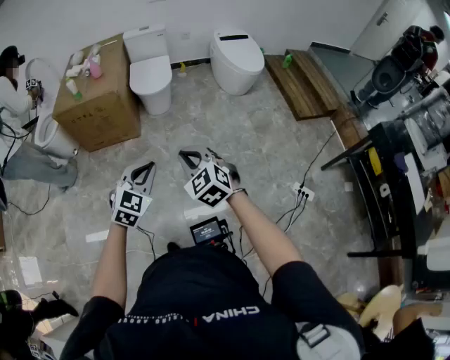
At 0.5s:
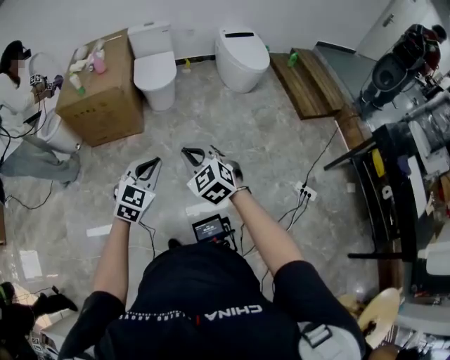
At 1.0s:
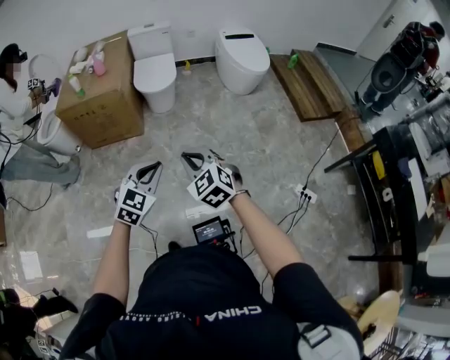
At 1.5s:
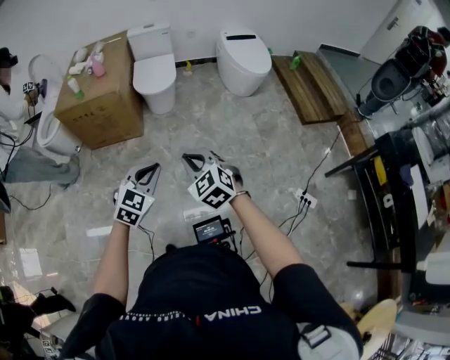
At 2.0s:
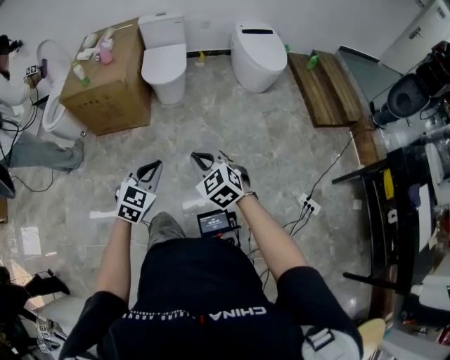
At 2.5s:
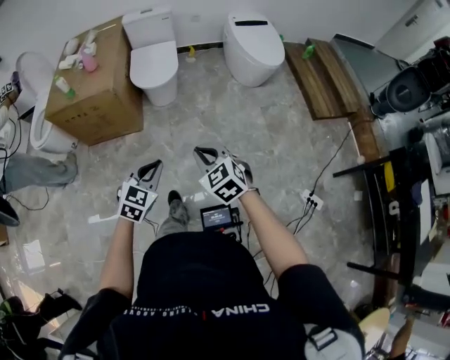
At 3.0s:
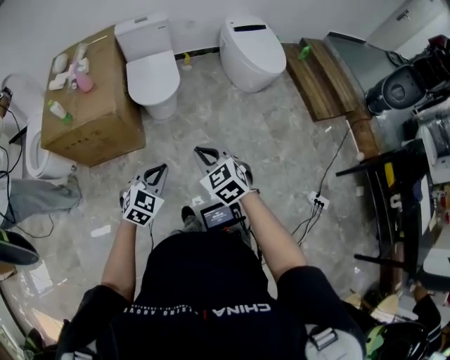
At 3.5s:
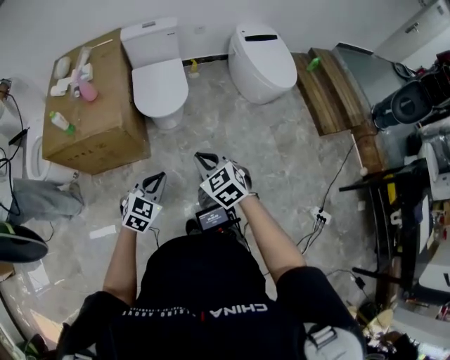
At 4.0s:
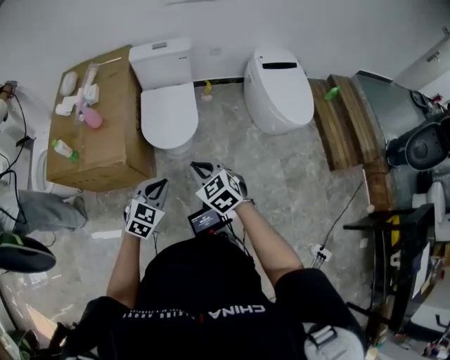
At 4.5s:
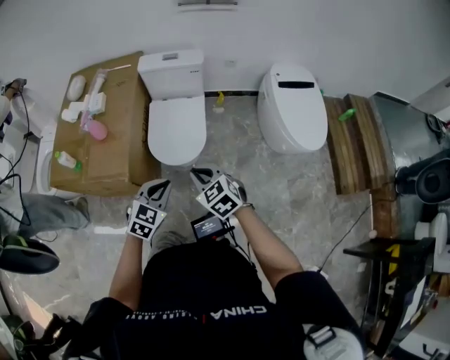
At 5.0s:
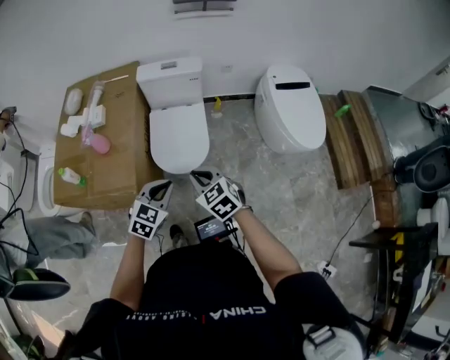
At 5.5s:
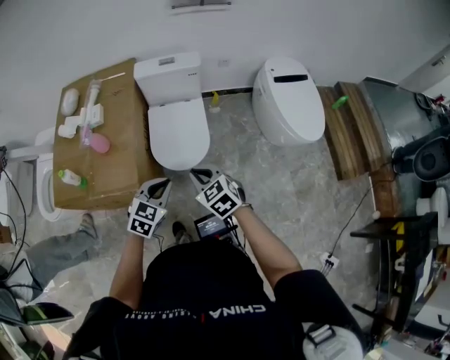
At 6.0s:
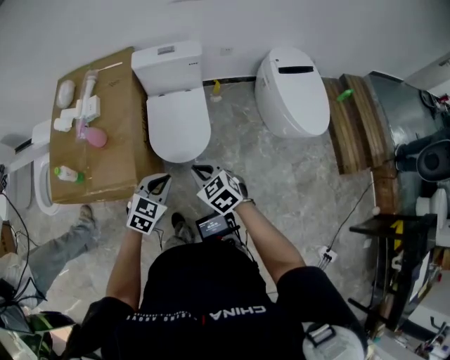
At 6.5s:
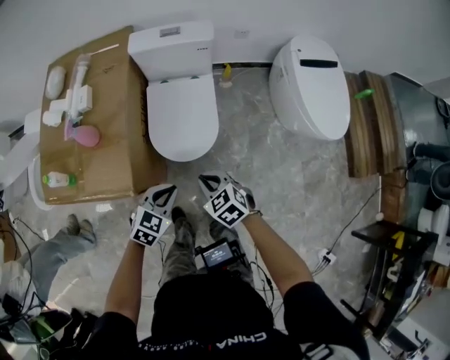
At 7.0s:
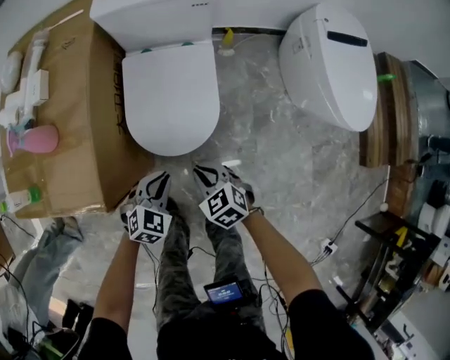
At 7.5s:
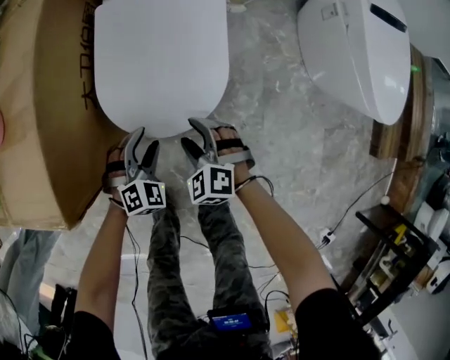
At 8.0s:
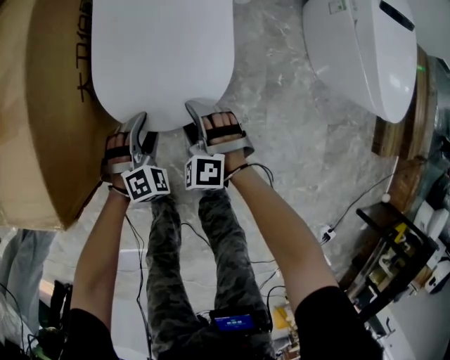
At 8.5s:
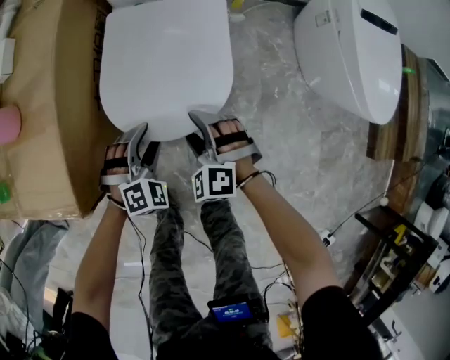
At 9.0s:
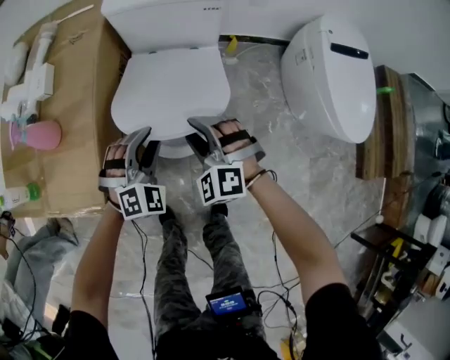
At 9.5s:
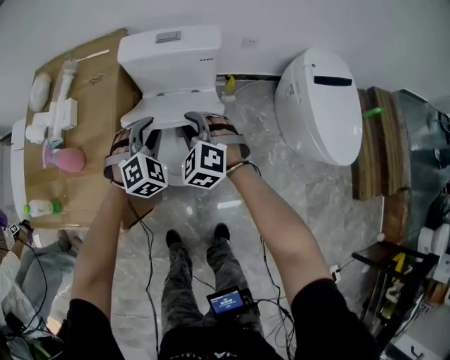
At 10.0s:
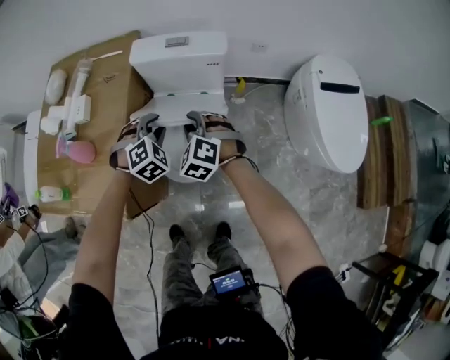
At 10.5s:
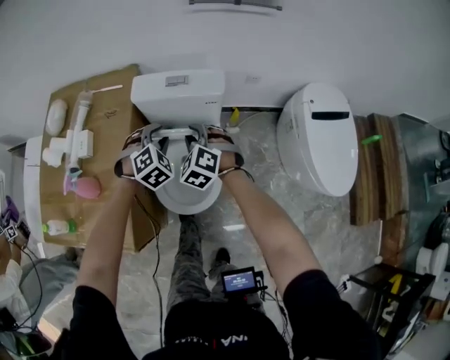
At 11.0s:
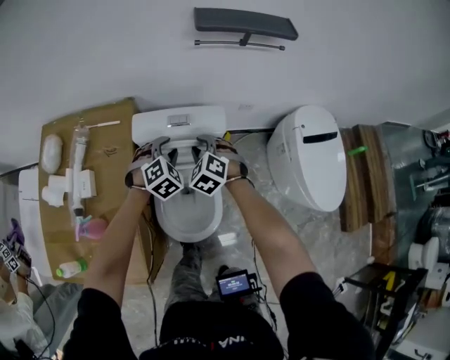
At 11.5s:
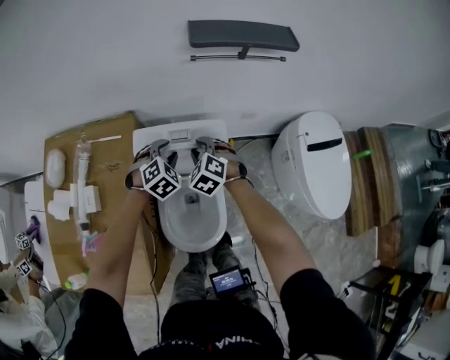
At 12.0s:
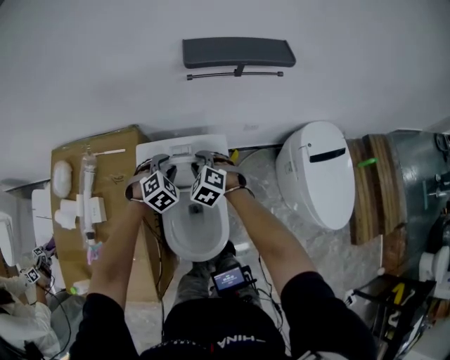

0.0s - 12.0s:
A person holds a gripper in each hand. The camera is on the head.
0.0s - 2.0s: The right gripper goes about 10 cm forward, to the right and downward; the left gripper moves forward and to the right, about 10 cm.
2.0s - 4.0s: The two grippers travel together, forward, about 60 cm.
4.0s - 6.0s: Both grippers travel together forward, roughly 15 cm.
6.0s - 8.0s: The grippers both shift downward by about 50 cm. The right gripper rotates around the line of its fingers by some 40 degrees, counterclockwise from behind, and opens its fingers, while the left gripper rotates about 40 degrees, and opens up.
8.0s - 10.0s: Both grippers move upward and forward, roughly 40 cm. The left gripper closes its fingers, while the right gripper closes up.
10.0s - 12.0s: Both grippers move forward, about 25 cm.

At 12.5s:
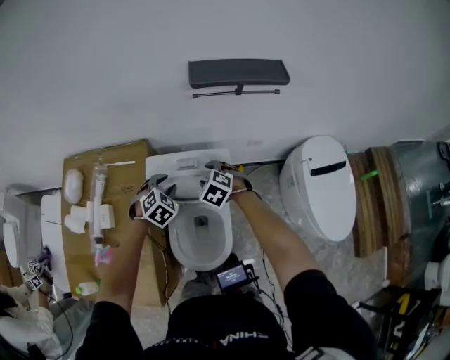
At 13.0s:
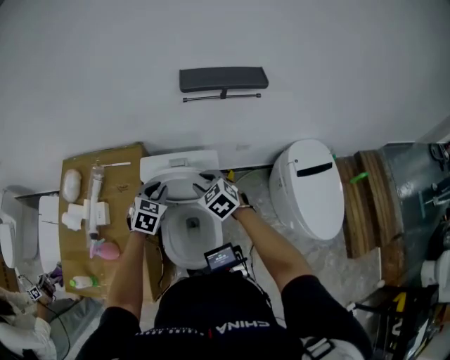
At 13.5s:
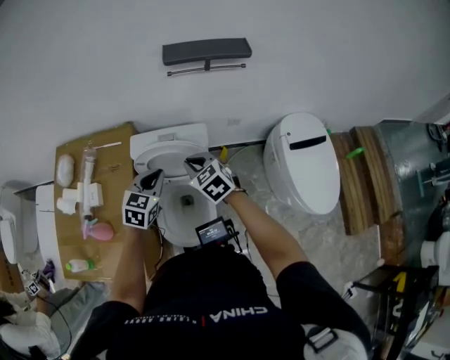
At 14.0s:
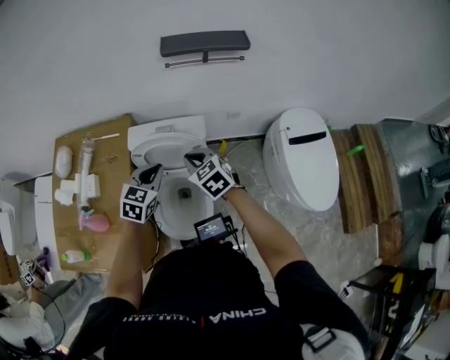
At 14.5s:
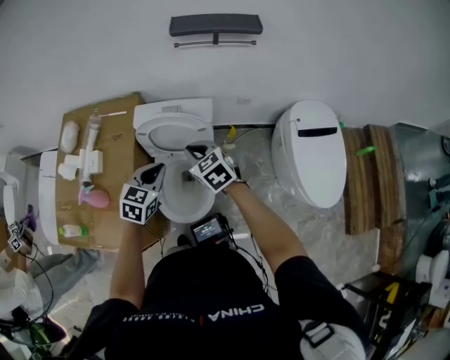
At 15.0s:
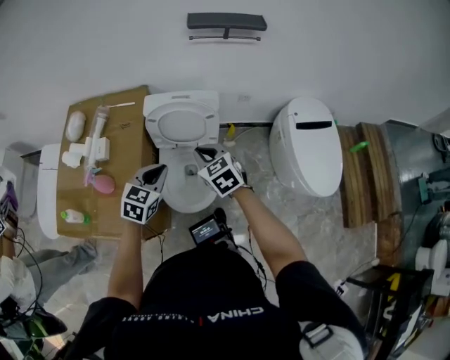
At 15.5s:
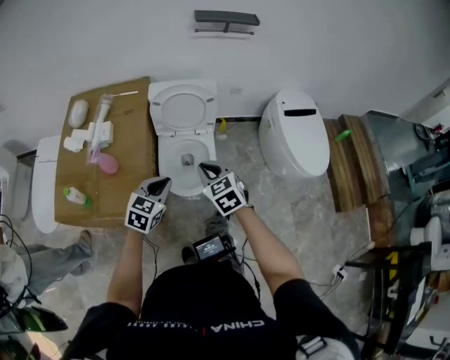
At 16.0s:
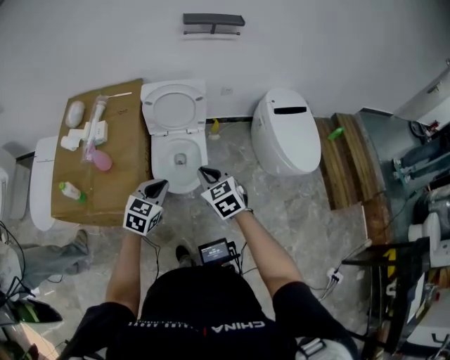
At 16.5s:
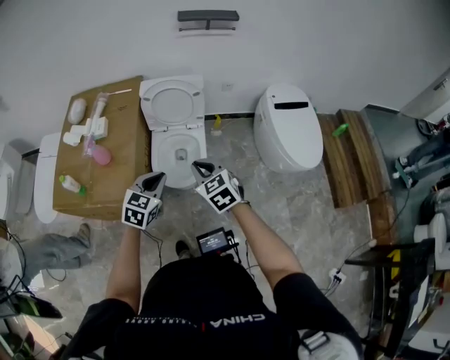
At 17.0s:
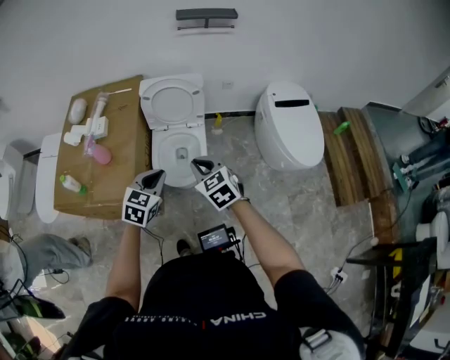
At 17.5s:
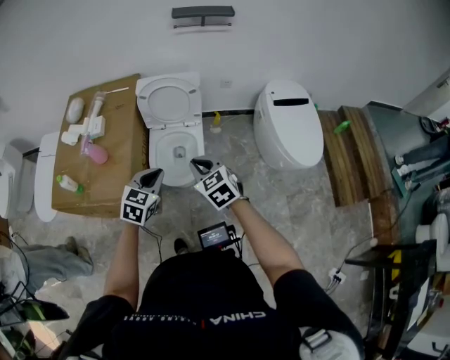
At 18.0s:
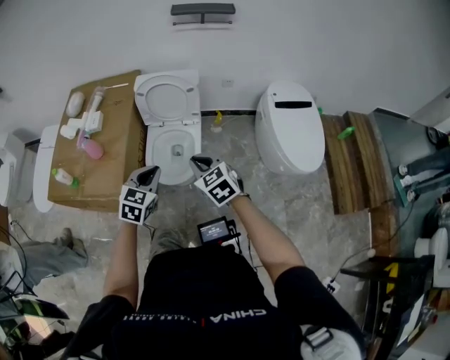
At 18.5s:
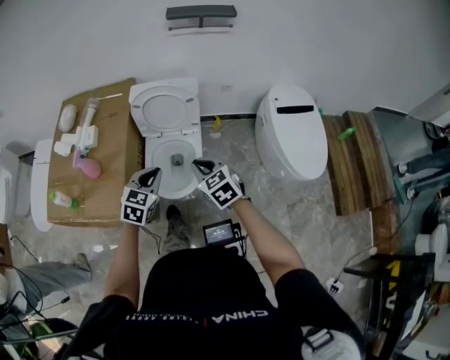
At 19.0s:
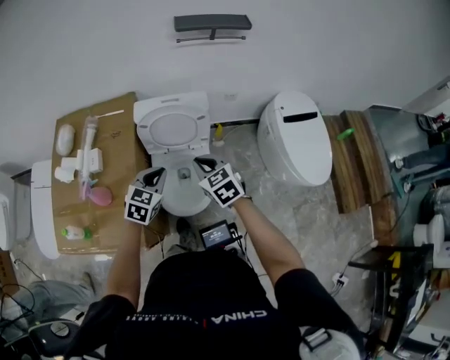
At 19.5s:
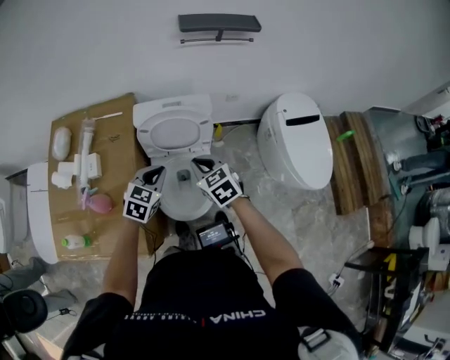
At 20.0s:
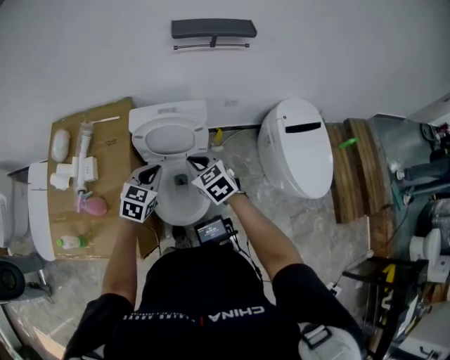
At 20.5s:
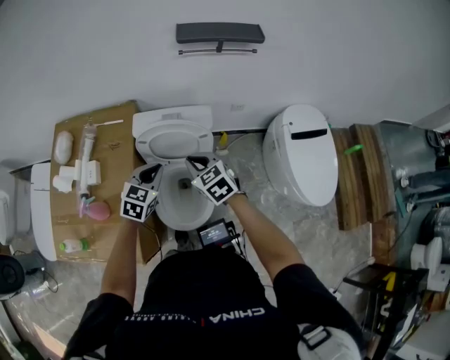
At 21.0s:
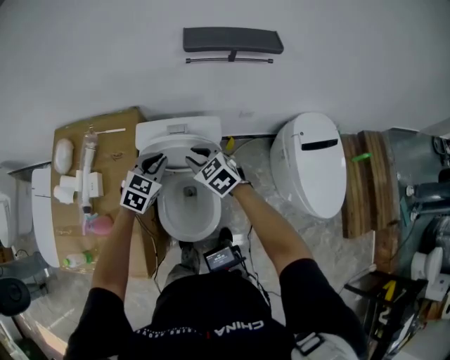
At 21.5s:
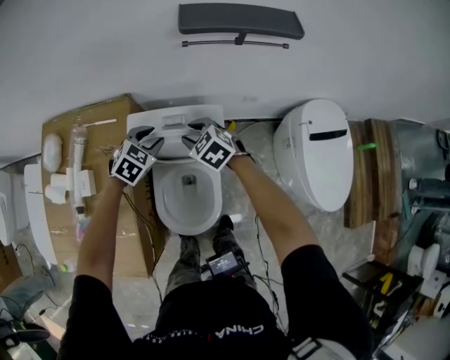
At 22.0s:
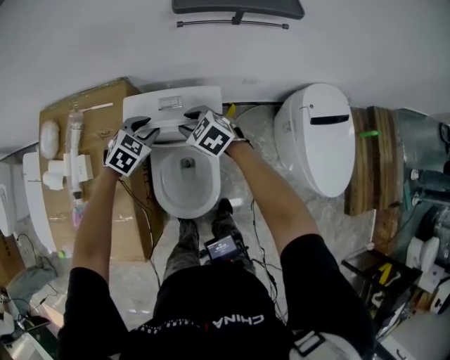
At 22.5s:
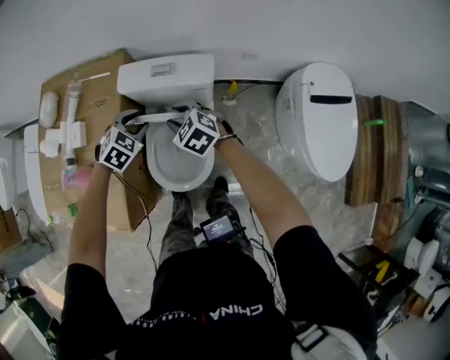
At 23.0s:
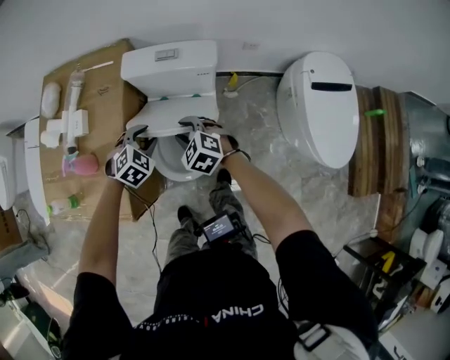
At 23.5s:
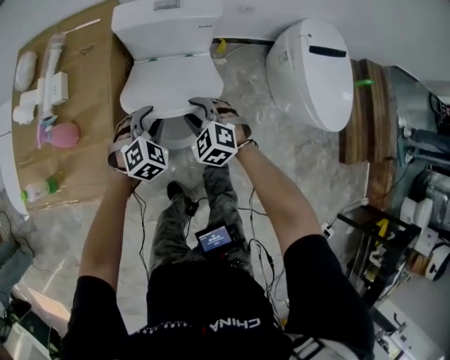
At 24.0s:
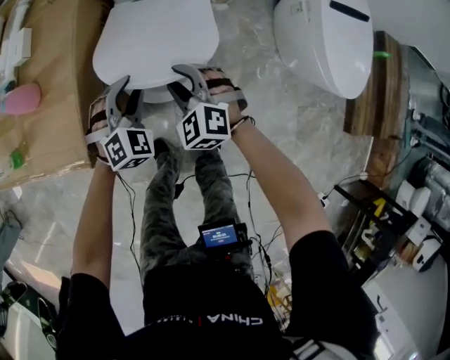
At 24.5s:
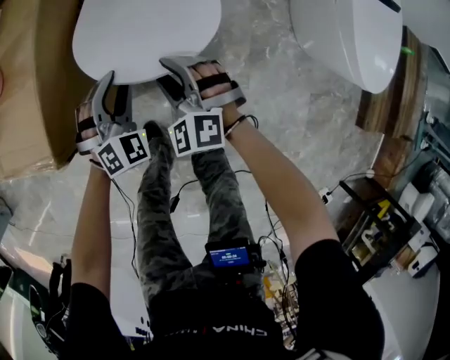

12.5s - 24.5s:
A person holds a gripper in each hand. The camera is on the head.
12.5s - 14.5s: Both grippers move backward and upward, roughly 20 cm. The left gripper rotates roughly 40 degrees, and closes up. Meanwhile the right gripper changes its angle by some 30 degrees, and closes.
14.5s - 16.5s: Both grippers travel together backward, roughly 35 cm.
16.5s - 18.5s: The right gripper shifts about 10 cm forward and to the right, while the left gripper moves forward, approximately 10 cm.
18.5s - 20.5s: The grippers both shift forward by roughly 25 cm.
20.5s - 22.5s: The right gripper is displaced downward by some 10 cm, reaches roughly 20 cm forward, then returns, swivels roughly 20 degrees, and opens, while the left gripper is displaced downward and forward by about 10 cm, swivels about 30 degrees, and opens.
22.5s - 24.5s: The two grippers go about 35 cm backward and downward. The left gripper changes its angle by some 30 degrees; the right gripper turns by some 30 degrees.

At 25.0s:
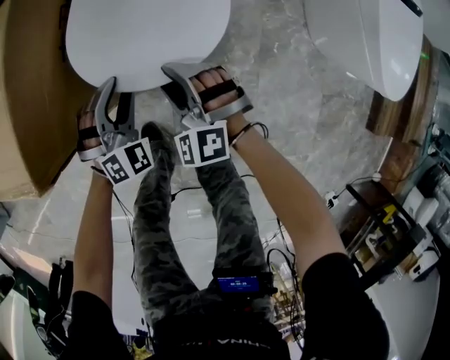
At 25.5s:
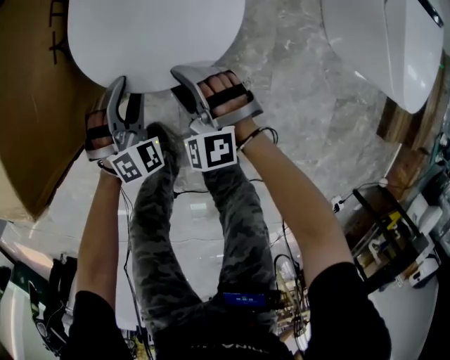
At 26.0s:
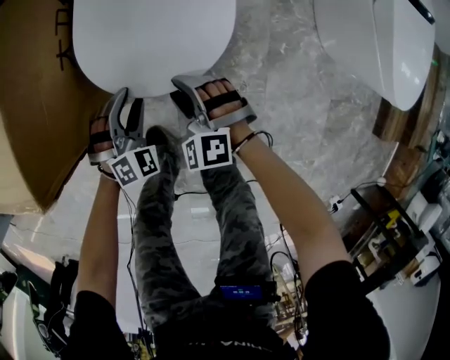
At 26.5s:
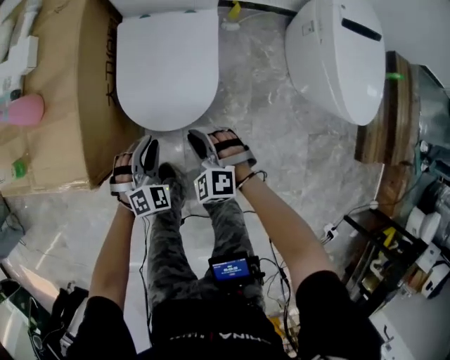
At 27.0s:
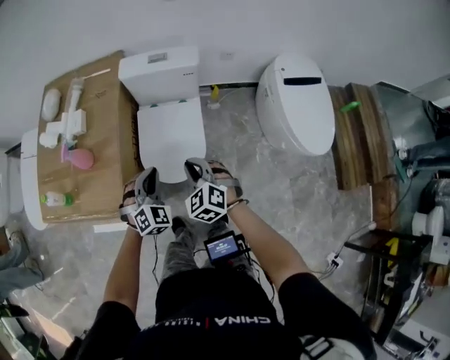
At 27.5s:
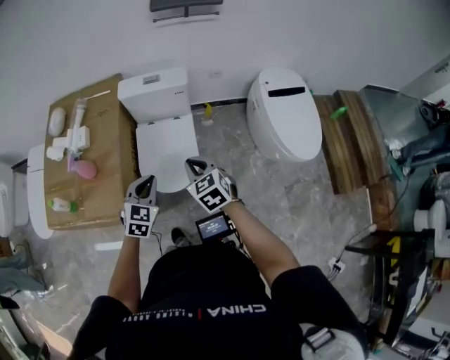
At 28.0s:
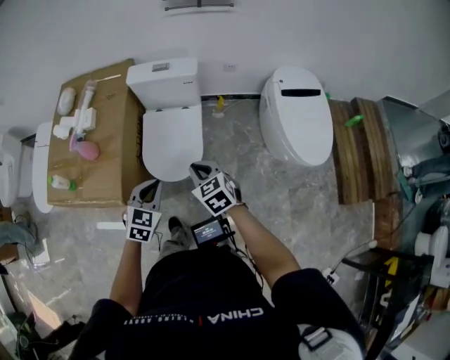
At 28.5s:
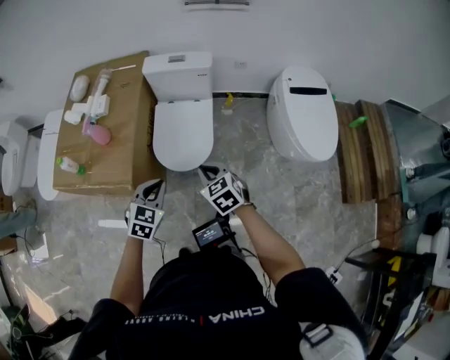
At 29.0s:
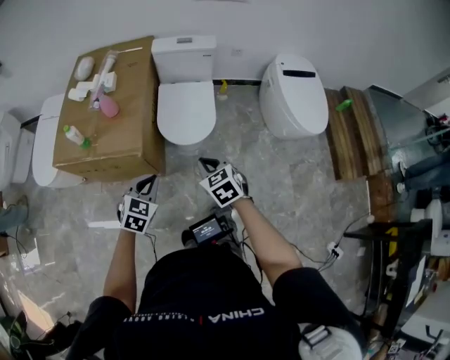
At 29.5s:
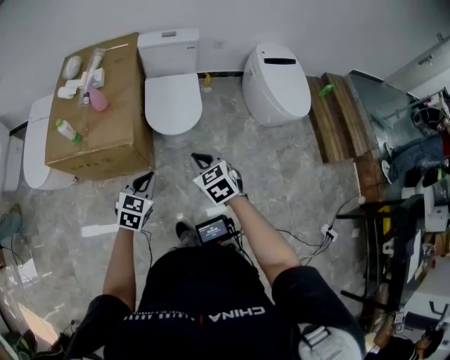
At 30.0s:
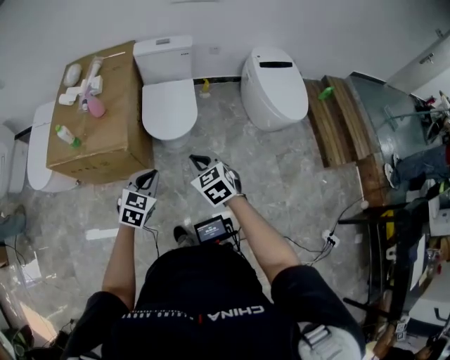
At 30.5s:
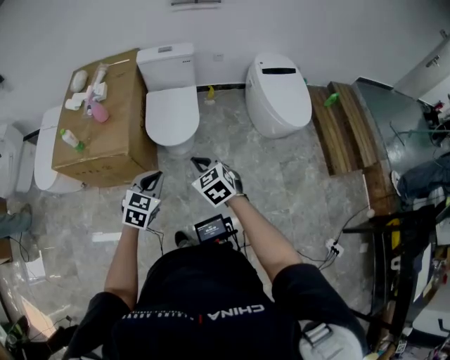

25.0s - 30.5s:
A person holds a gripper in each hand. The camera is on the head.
25.0s - 27.0s: The grippers both shift upward by roughly 35 cm. The left gripper closes up. The right gripper rotates about 30 degrees, and closes its fingers.
27.0s - 28.5s: Both grippers travel together backward, approximately 15 cm. The left gripper changes its angle by roughly 30 degrees; the right gripper swivels some 30 degrees.
28.5s - 30.5s: The grippers both shift backward by some 20 cm.
